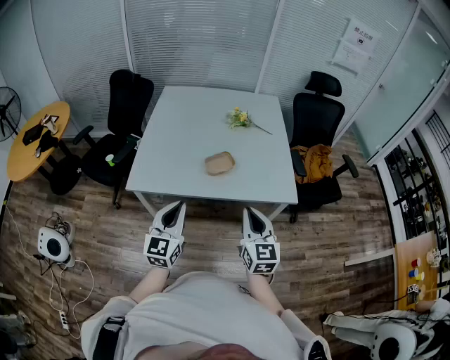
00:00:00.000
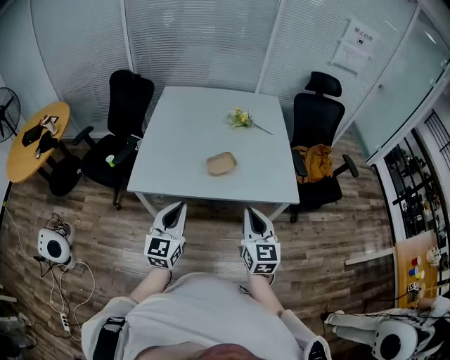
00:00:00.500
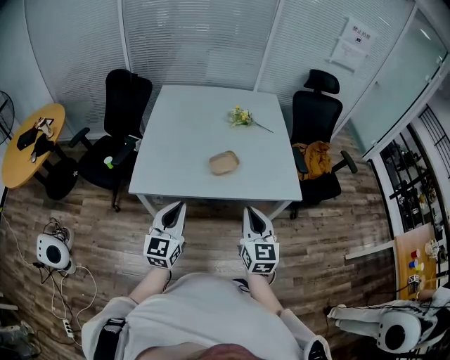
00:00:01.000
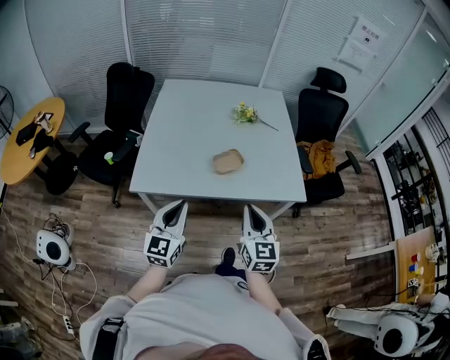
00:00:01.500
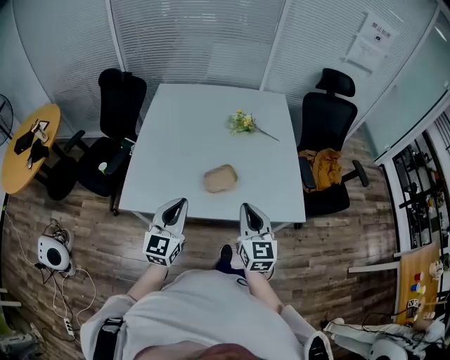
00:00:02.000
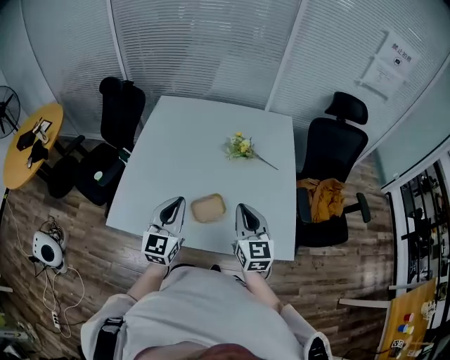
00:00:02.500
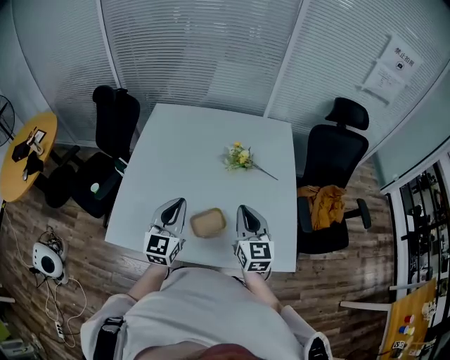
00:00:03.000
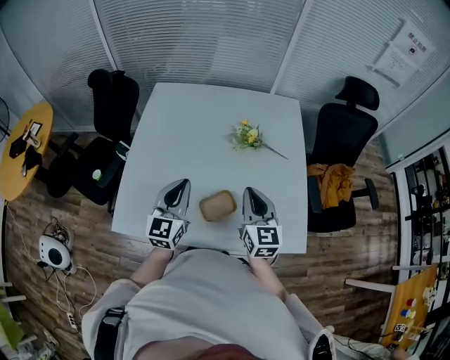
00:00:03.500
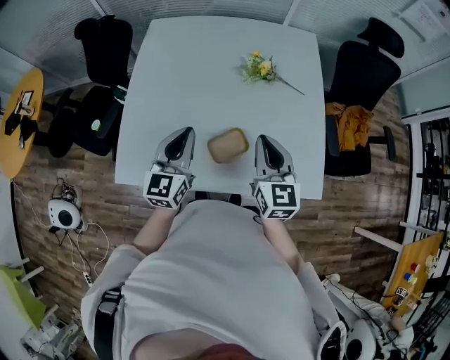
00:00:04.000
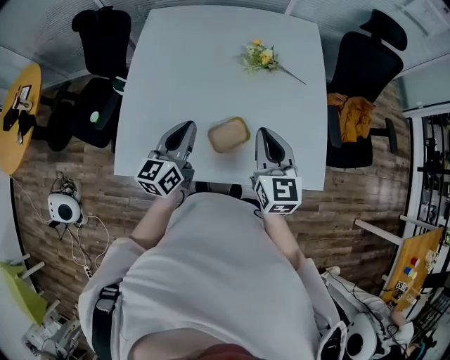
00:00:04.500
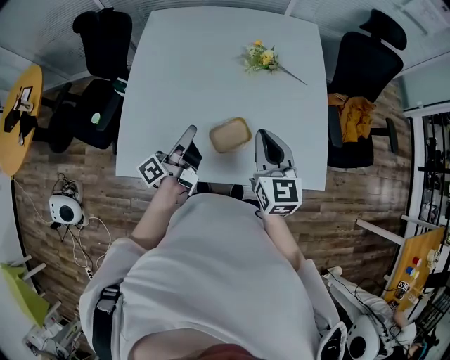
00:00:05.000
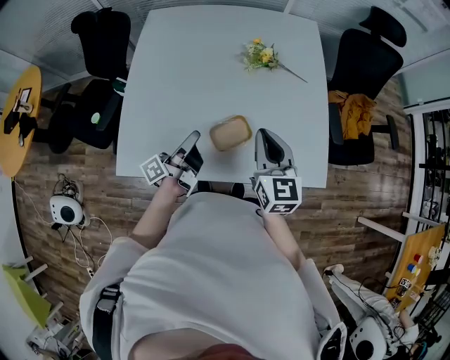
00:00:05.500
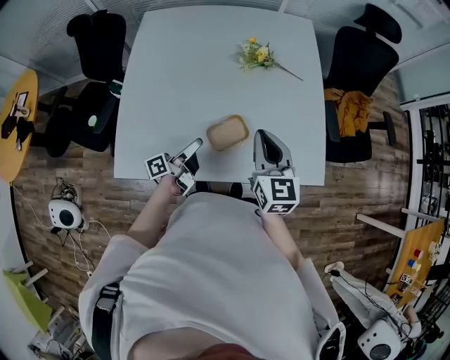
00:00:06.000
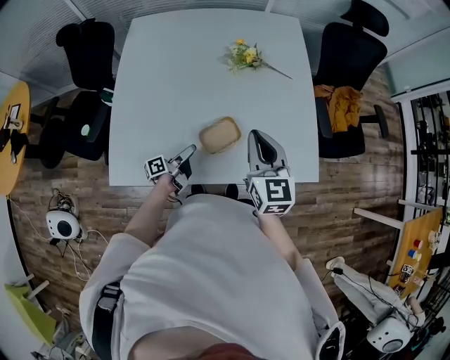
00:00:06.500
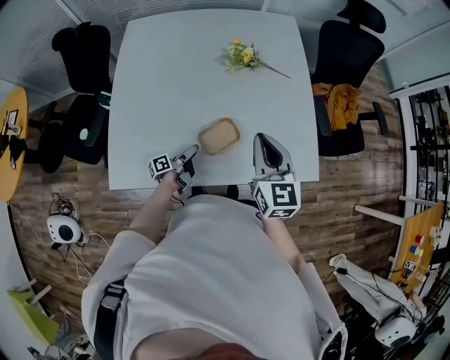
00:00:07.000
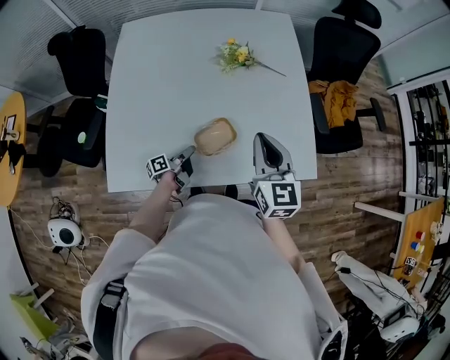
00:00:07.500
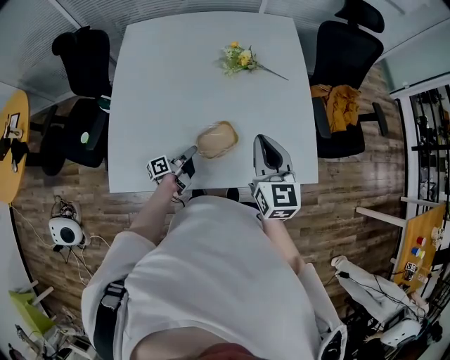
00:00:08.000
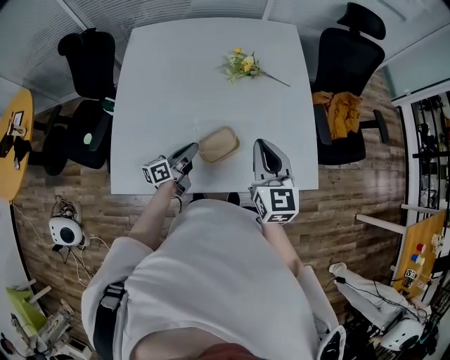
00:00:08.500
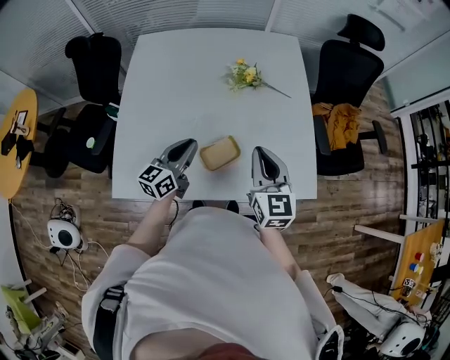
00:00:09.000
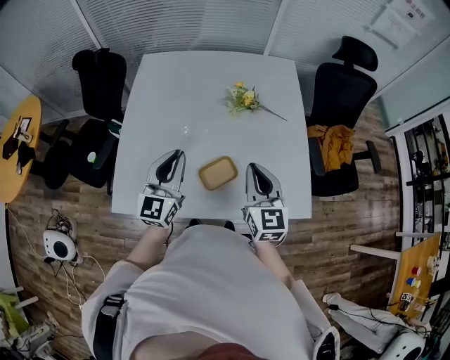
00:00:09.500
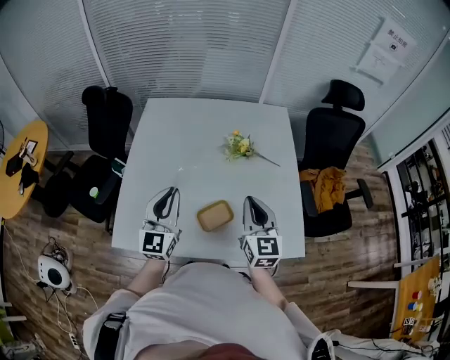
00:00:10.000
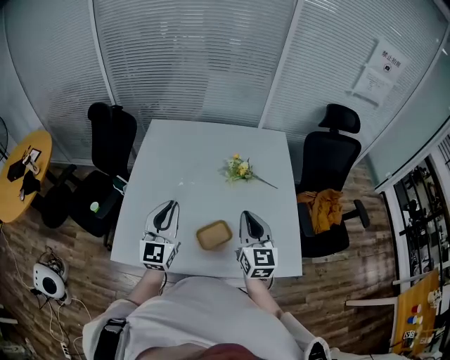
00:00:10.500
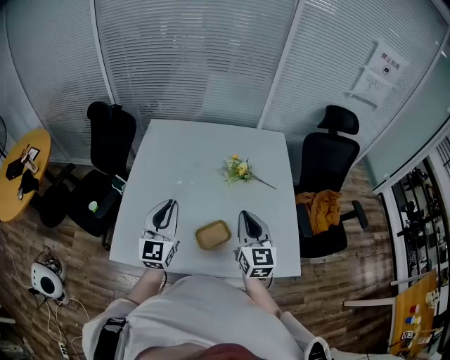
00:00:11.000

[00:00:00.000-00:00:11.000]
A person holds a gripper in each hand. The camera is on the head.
00:00:00.000 to 00:00:02.000: Both grippers move forward, approximately 15 cm.
00:00:02.000 to 00:00:03.500: Both grippers move forward, about 25 cm.
00:00:03.500 to 00:00:05.500: The left gripper shifts some 10 cm downward, and rotates around the line of its fingers by roughly 80 degrees, counterclockwise from behind.
00:00:05.500 to 00:00:07.500: The left gripper travels downward by some 20 cm, turns by some 30 degrees, and opens, then closes once more.
00:00:07.500 to 00:00:09.000: The left gripper travels upward by about 25 cm, and rolls clockwise, seen from behind, by some 60 degrees.
00:00:09.000 to 00:00:11.000: The left gripper heads upward and to the left, covering some 15 cm, and turns by approximately 40 degrees; the right gripper ends up approximately 5 cm from where it was.

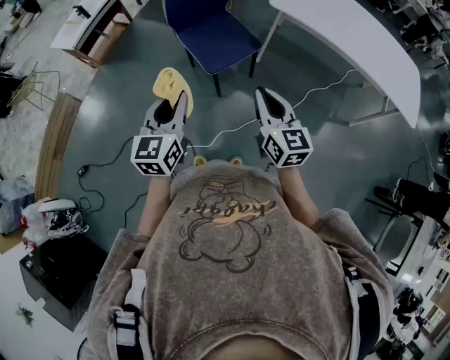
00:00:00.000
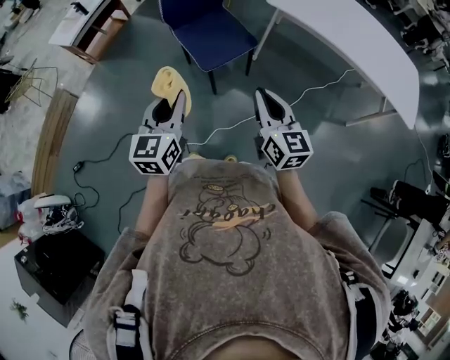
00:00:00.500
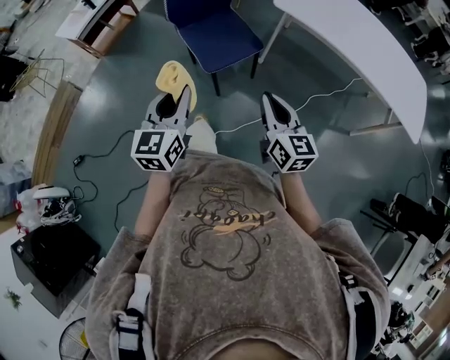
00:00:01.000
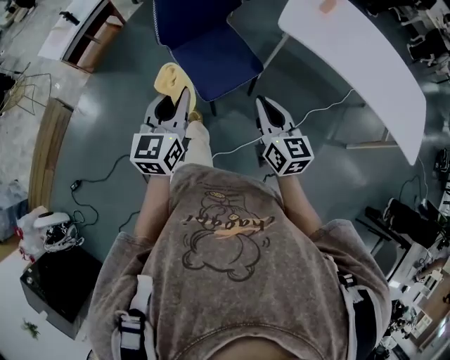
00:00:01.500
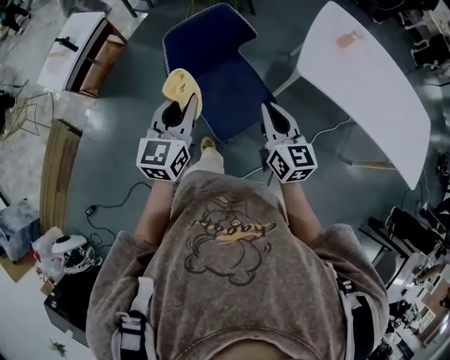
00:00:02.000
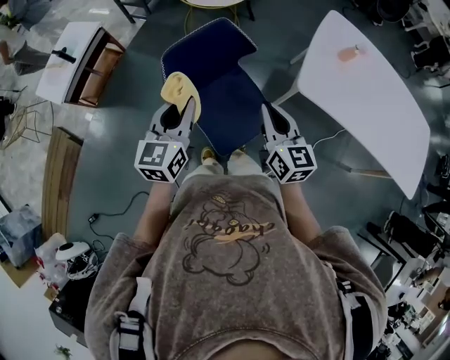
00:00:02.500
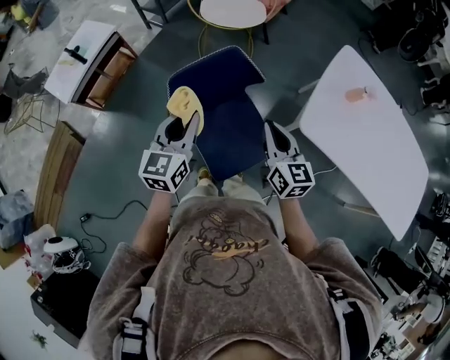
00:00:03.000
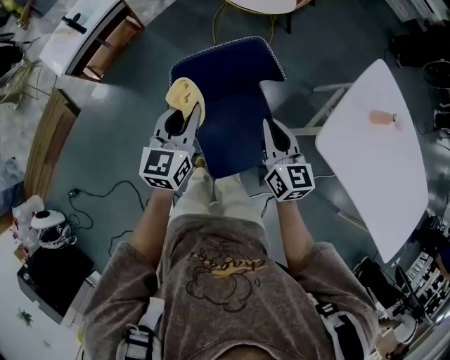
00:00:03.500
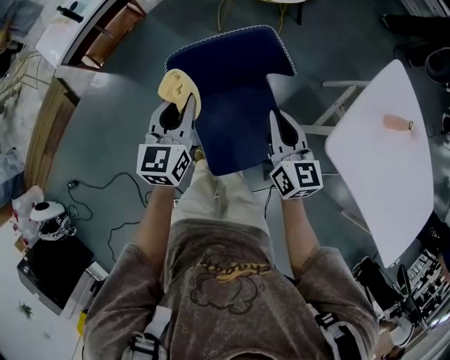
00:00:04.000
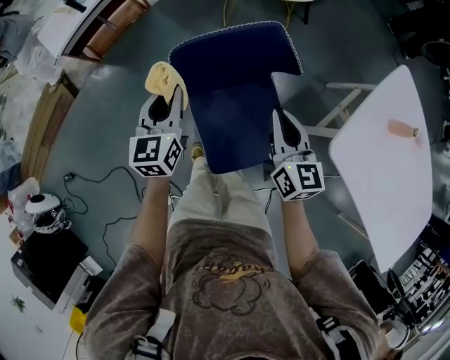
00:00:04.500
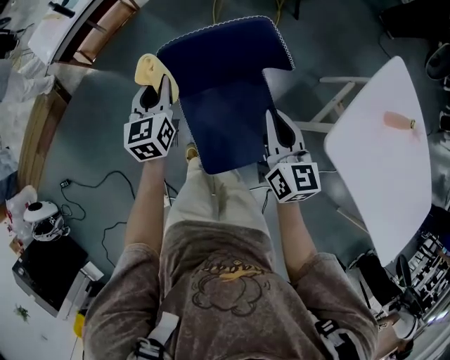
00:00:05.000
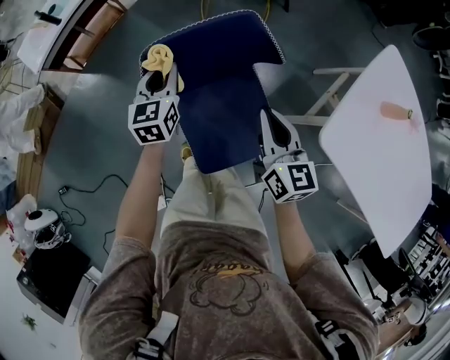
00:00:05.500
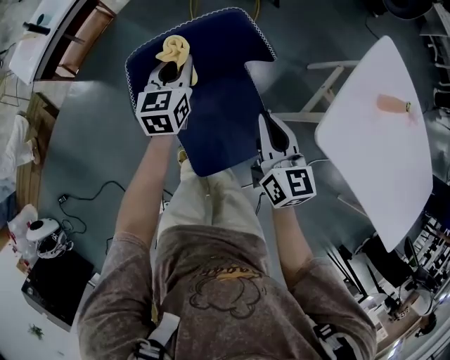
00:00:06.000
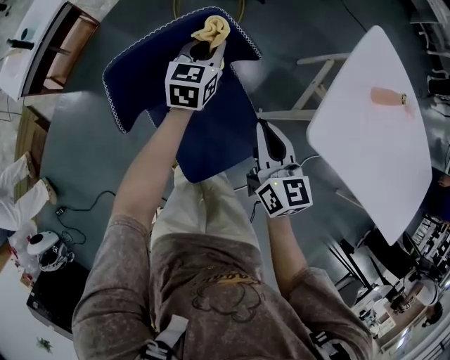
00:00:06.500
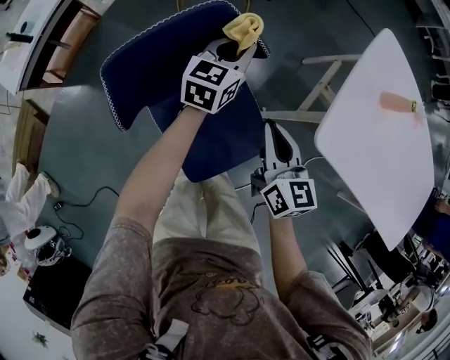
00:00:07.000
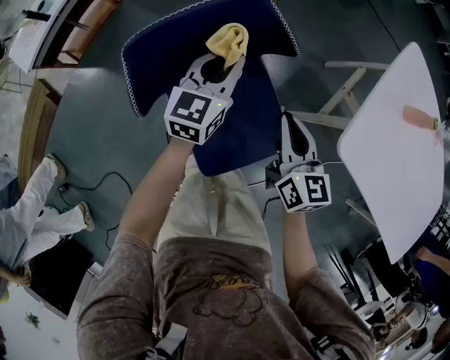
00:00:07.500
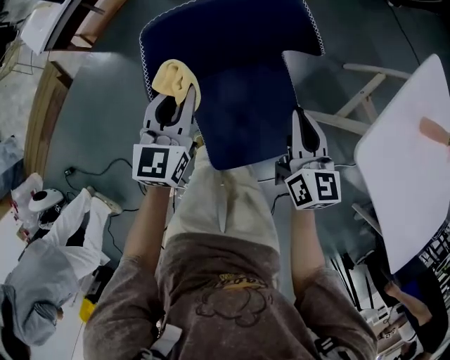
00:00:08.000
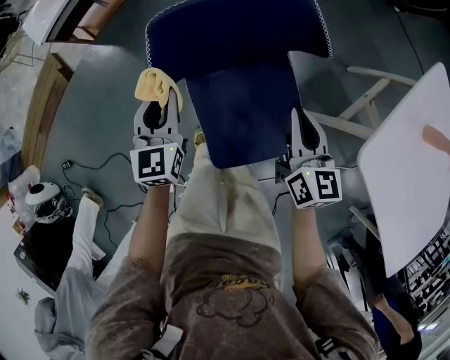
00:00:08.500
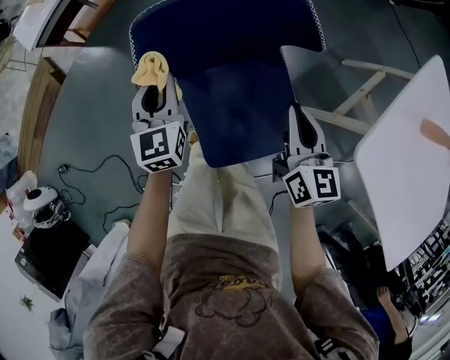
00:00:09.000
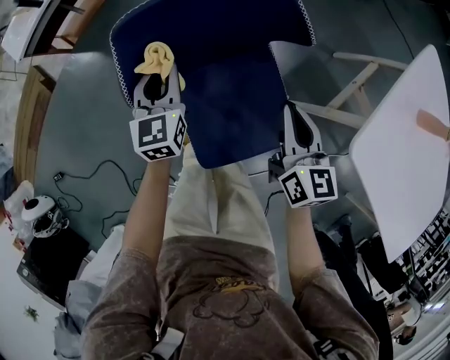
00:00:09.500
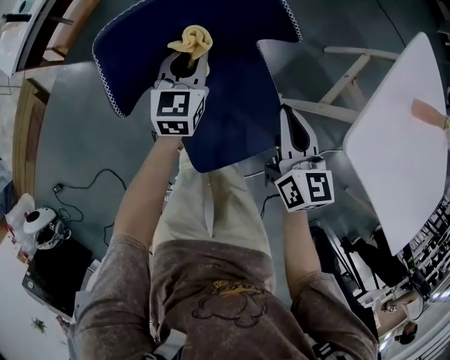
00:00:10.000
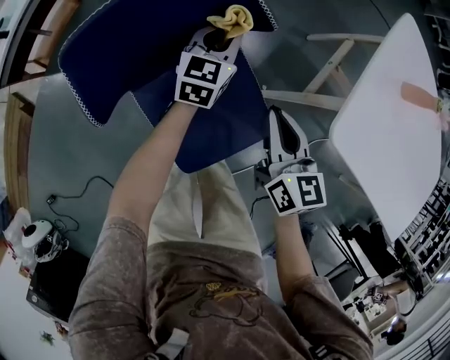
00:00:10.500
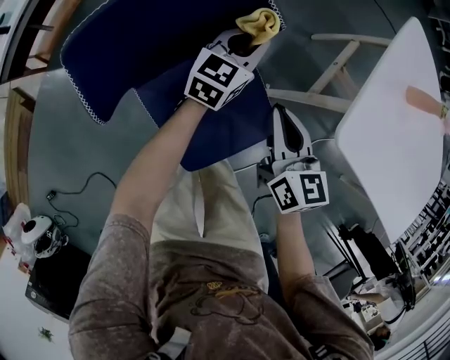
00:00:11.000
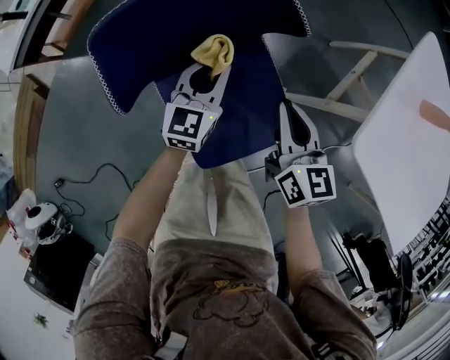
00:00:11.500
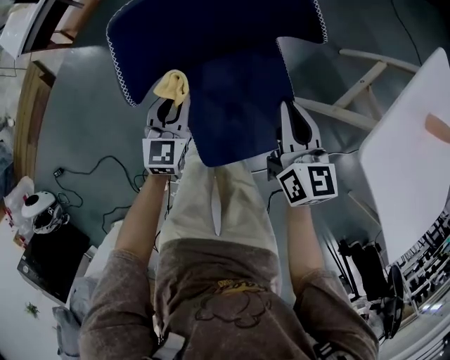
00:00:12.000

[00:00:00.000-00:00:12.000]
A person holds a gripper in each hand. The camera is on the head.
00:00:00.000 to 00:00:02.000: The grippers both shift forward by roughly 40 cm.
00:00:02.000 to 00:00:04.000: The two grippers go about 25 cm forward and downward. The left gripper changes its angle by roughly 20 degrees.
00:00:04.000 to 00:00:06.000: The left gripper moves downward, forward and to the right, approximately 15 cm; the right gripper moves about 5 cm.
00:00:06.000 to 00:00:08.000: The right gripper heads downward, covering about 5 cm. Meanwhile the left gripper heads backward, covering approximately 10 cm, and goes to the right and returns, some 20 cm each way.
00:00:08.000 to 00:00:10.000: The left gripper goes some 15 cm to the right, downward and forward.
00:00:10.000 to 00:00:12.000: The left gripper heads backward and downward, covering roughly 15 cm, and goes to the right and returns, about 20 cm each way.

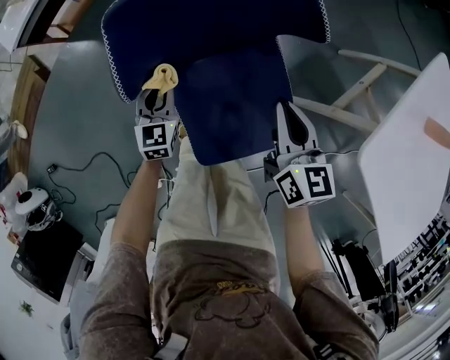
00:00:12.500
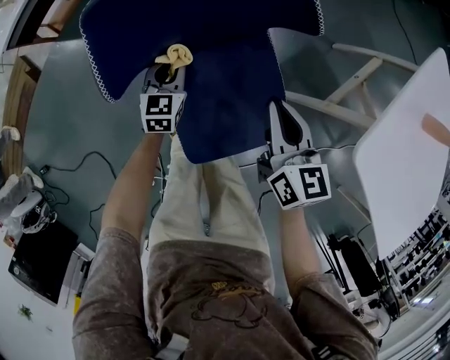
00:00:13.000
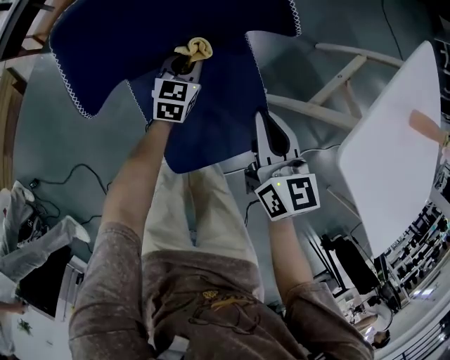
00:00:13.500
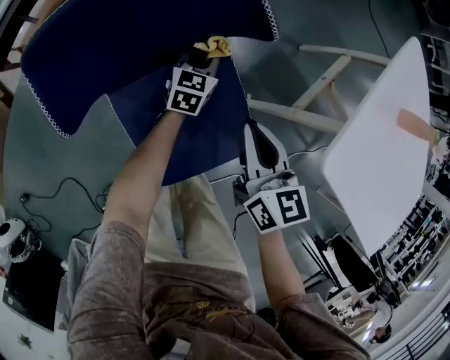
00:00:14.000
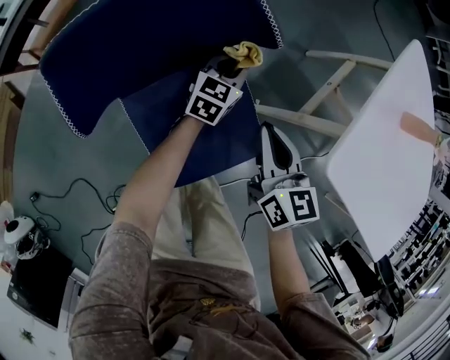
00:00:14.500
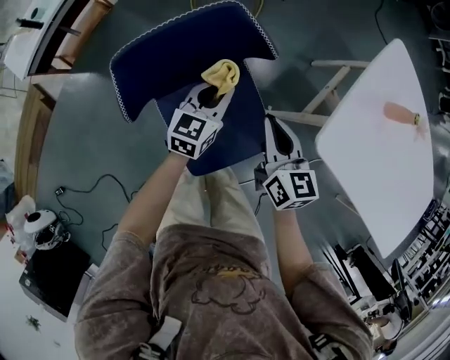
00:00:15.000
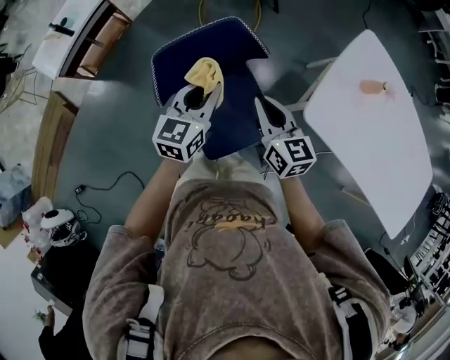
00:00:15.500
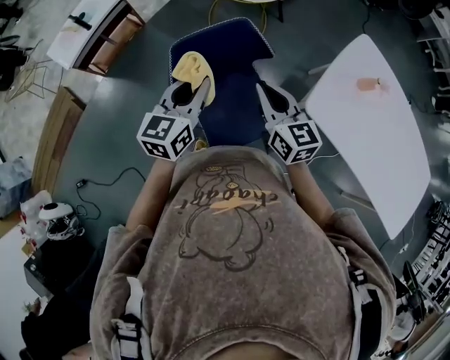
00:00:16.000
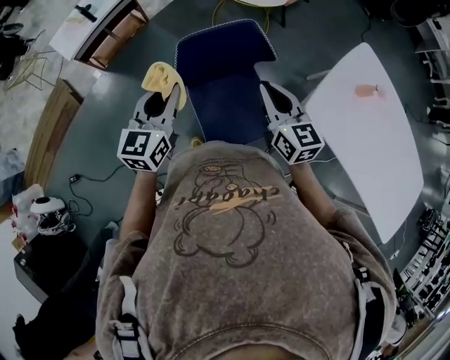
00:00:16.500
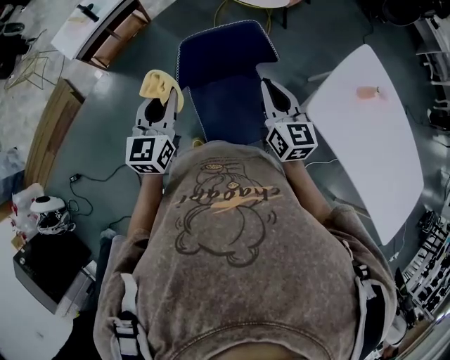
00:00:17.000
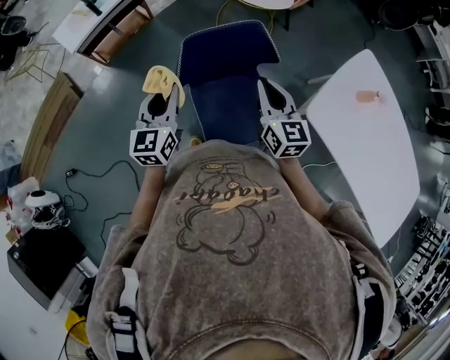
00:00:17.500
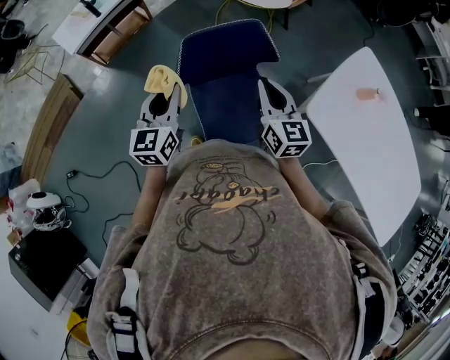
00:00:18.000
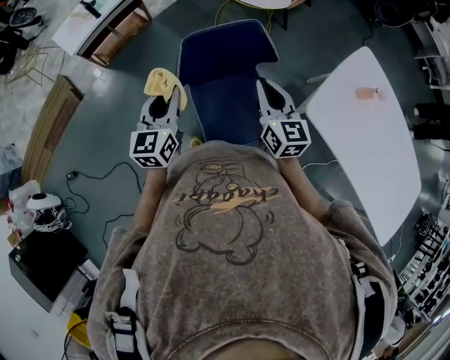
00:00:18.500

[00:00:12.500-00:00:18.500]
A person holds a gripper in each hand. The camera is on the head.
00:00:12.500 to 00:00:14.500: The left gripper is displaced to the right and forward by approximately 35 cm, and turns by approximately 40 degrees. Meanwhile the right gripper is displaced to the right by roughly 10 cm.
00:00:14.500 to 00:00:16.500: The right gripper heads upward, covering about 30 cm, and turns by roughly 20 degrees; the left gripper shifts some 60 cm upward, to the left and backward, and swivels some 30 degrees.
00:00:16.500 to 00:00:18.500: The grippers make only small movements.
